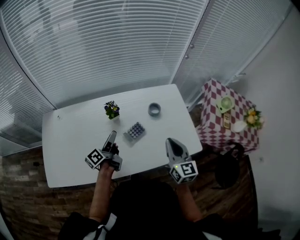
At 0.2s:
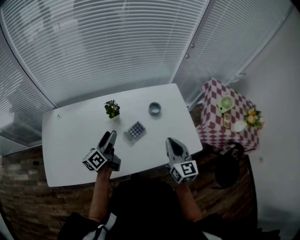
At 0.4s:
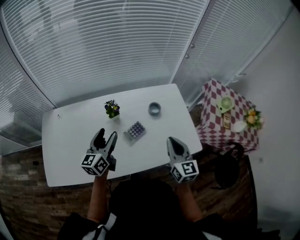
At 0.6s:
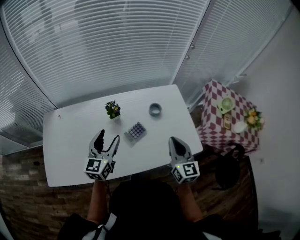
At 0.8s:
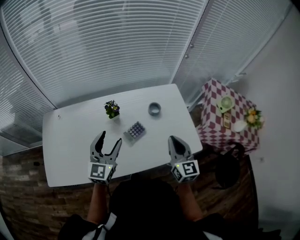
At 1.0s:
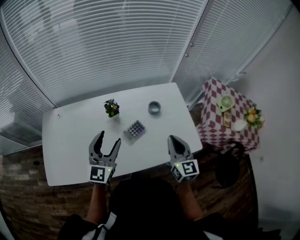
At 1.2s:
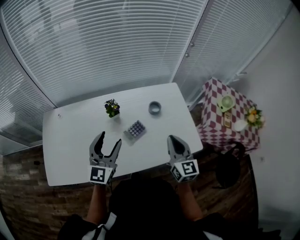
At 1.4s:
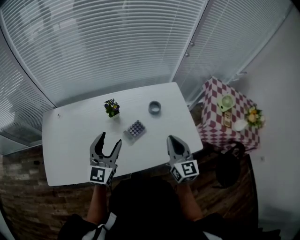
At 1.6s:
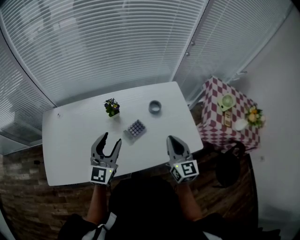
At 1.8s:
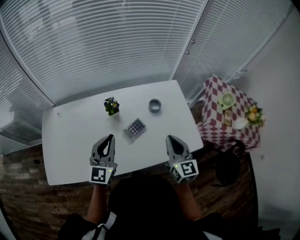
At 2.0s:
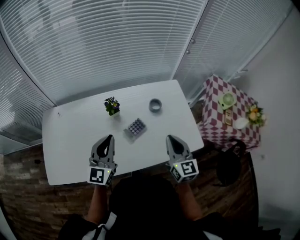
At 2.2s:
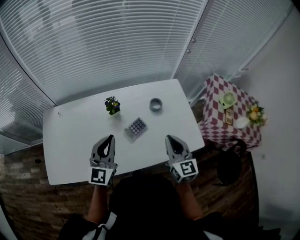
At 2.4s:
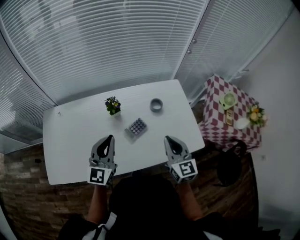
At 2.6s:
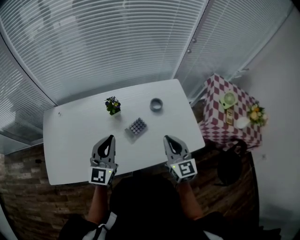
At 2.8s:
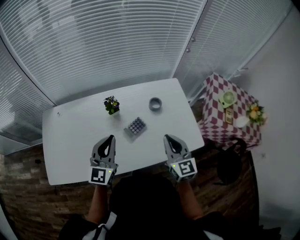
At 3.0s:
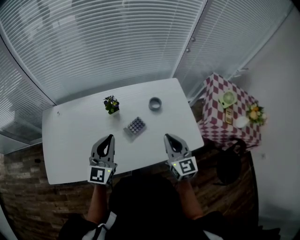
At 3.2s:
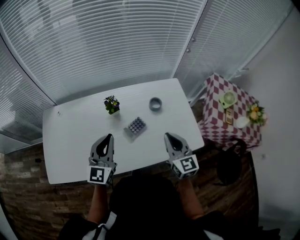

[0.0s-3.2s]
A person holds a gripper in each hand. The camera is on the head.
0.0s to 1.6s: The left gripper moves upward and backward, about 15 cm, and twists some 70 degrees clockwise, seen from behind.
1.6s to 3.2s: The left gripper closes its fingers.

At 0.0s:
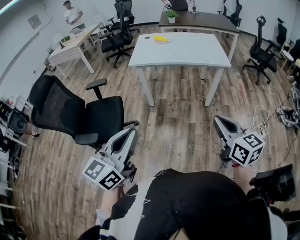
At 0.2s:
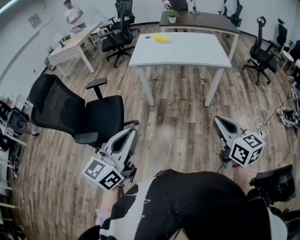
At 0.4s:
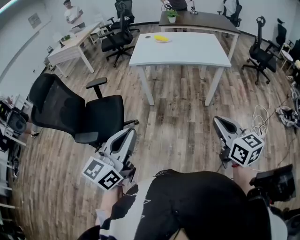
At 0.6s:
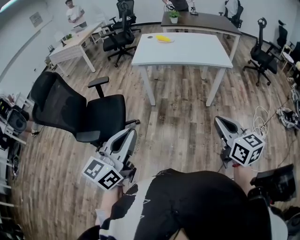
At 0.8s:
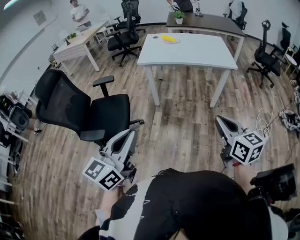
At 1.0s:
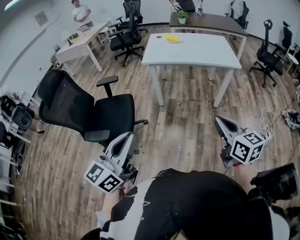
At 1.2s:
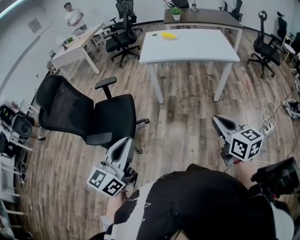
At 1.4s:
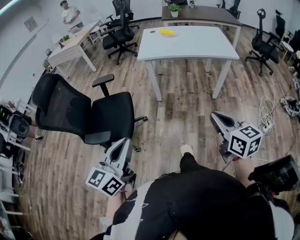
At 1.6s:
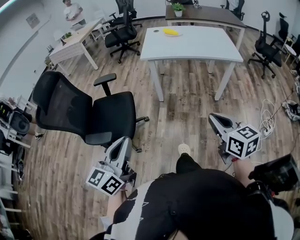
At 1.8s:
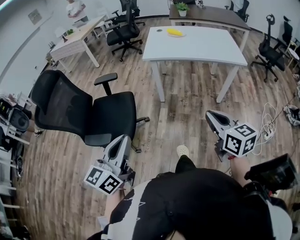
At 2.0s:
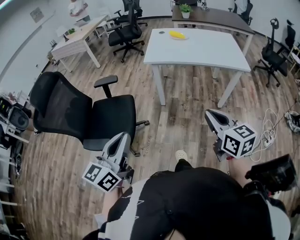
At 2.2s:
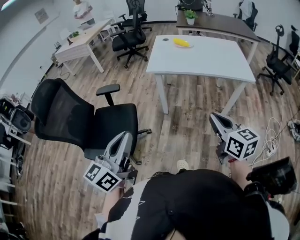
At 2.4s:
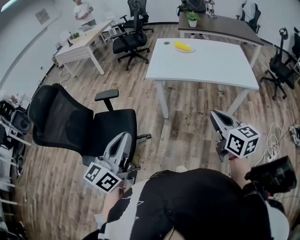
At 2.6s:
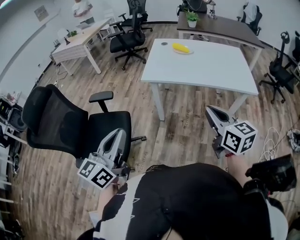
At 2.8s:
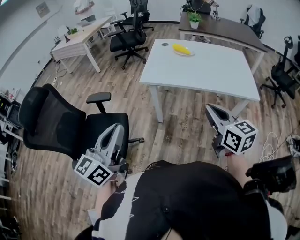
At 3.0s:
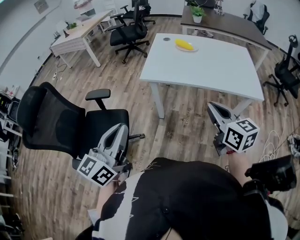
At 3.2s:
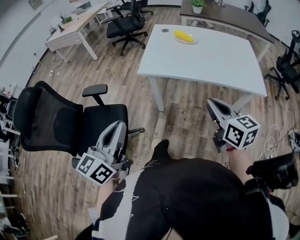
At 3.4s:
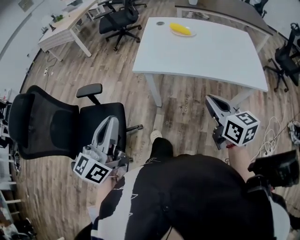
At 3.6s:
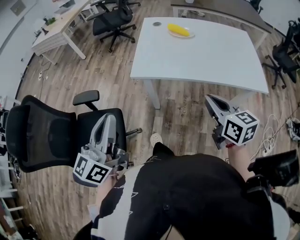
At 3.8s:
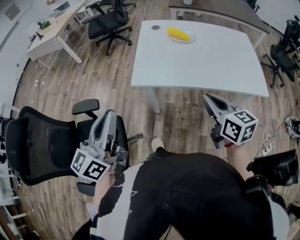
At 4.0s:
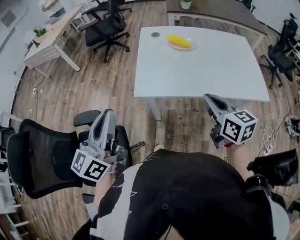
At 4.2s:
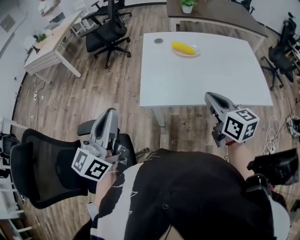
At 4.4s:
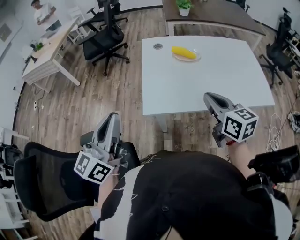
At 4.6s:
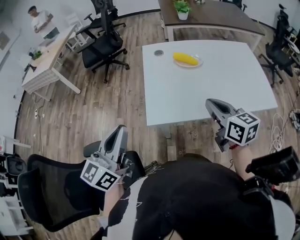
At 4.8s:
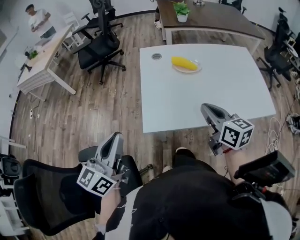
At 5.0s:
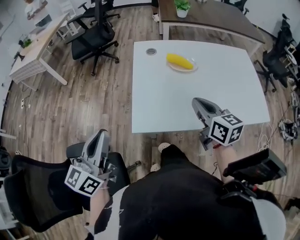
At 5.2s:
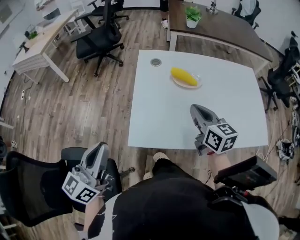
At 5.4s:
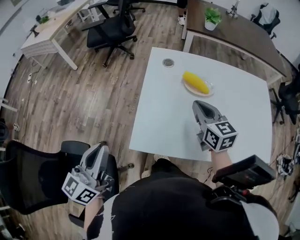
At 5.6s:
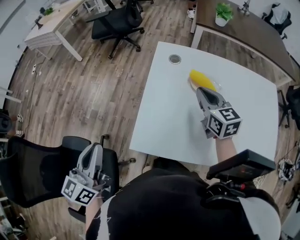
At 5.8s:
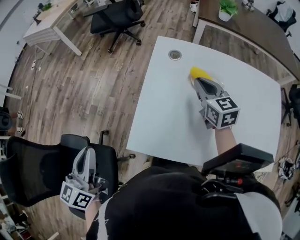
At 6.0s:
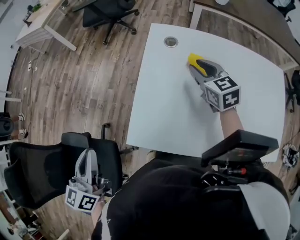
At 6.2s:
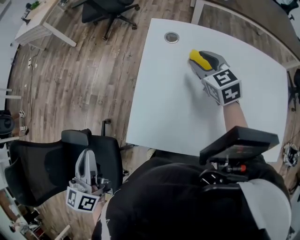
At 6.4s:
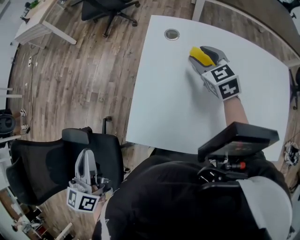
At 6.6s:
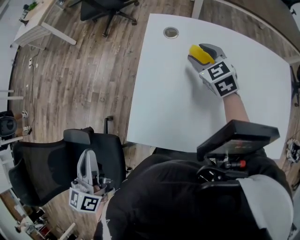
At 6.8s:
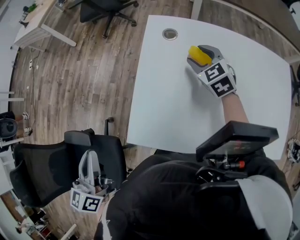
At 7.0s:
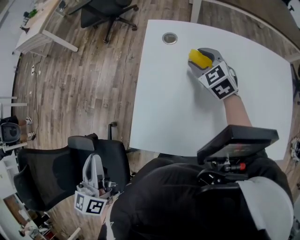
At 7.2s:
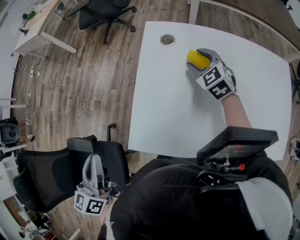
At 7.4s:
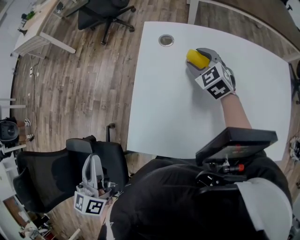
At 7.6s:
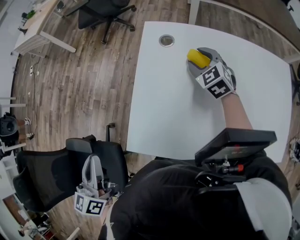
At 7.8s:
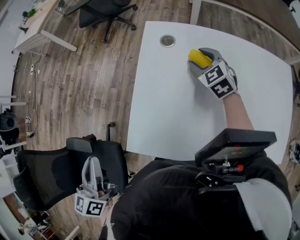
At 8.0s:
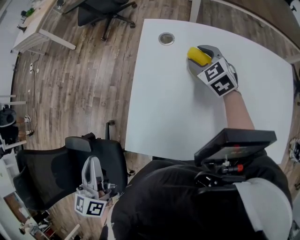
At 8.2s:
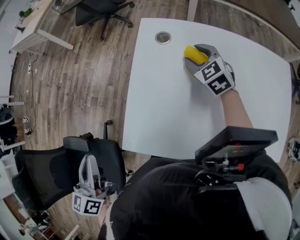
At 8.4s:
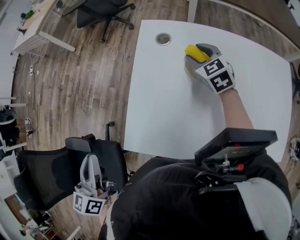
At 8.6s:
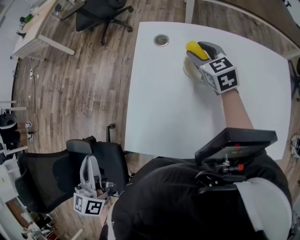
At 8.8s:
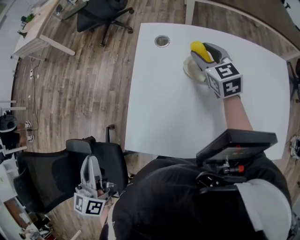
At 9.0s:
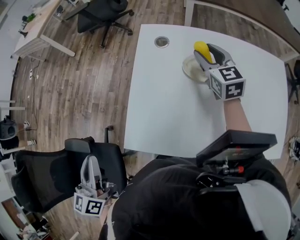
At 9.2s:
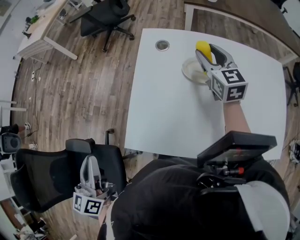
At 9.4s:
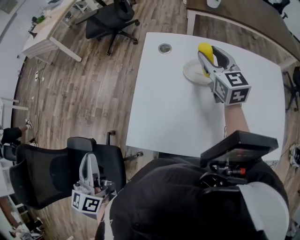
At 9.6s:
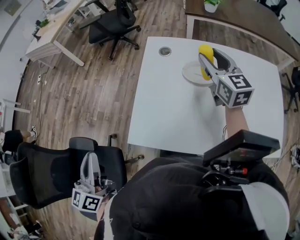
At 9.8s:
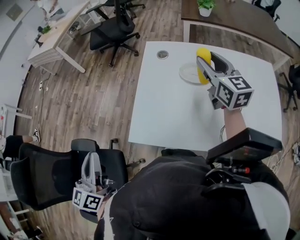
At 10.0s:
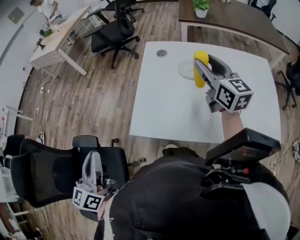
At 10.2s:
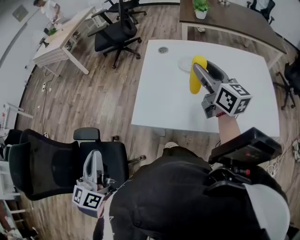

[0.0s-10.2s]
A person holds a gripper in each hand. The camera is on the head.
0.0s to 1.4s: The right gripper moves to the left, approximately 10 cm; the left gripper is displaced to the left and downward by some 15 cm.
1.4s to 3.0s: The grippers both shift forward by approximately 35 cm.
3.0s to 4.4s: Both grippers travel together forward, some 30 cm.
4.4s to 5.8s: The left gripper moves forward and downward, roughly 15 cm, and rotates about 30 degrees. Meanwhile the right gripper moves forward, approximately 35 cm, and changes its angle by about 20 degrees.
5.8s to 7.2s: The right gripper moves downward and forward, about 10 cm, turns by some 30 degrees, and opens.
7.2s to 8.8s: The right gripper is displaced upward by roughly 5 cm, and swivels approximately 20 degrees.
8.8s to 10.2s: The left gripper heads backward, covering some 20 cm. The right gripper goes about 30 cm backward and upward, and rotates approximately 40 degrees.

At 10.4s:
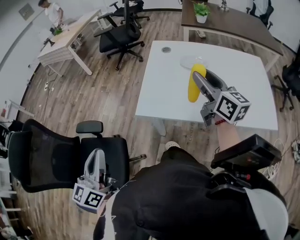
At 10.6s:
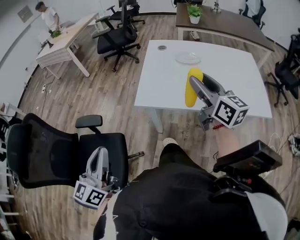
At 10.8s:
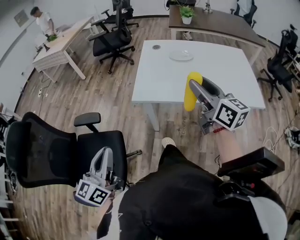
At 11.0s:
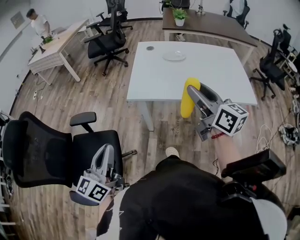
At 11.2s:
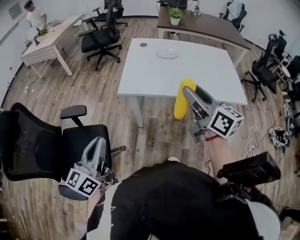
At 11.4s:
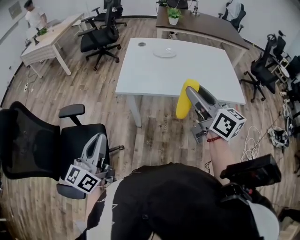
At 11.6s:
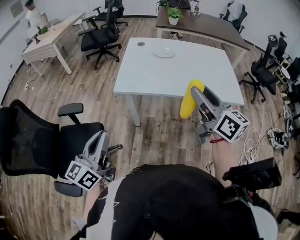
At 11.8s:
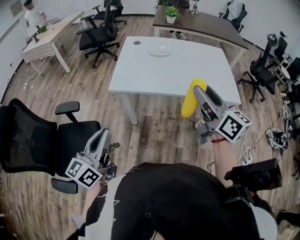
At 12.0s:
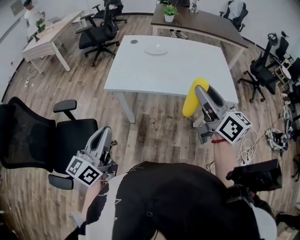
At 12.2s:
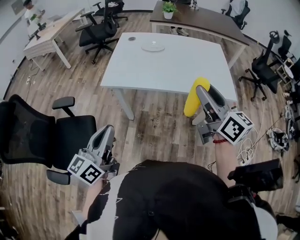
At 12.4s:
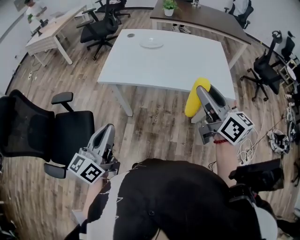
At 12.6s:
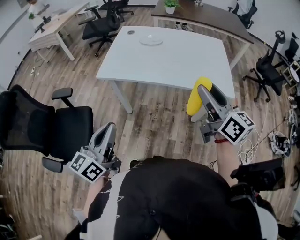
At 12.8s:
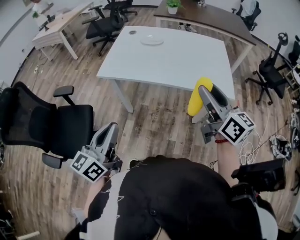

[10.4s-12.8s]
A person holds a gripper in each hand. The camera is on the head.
10.4s to 11.6s: The right gripper heads backward, covering some 30 cm, while the left gripper is displaced backward and to the right by approximately 15 cm.
11.6s to 12.8s: Both grippers travel together to the right, roughly 20 cm.

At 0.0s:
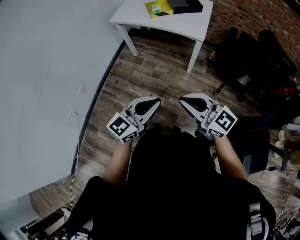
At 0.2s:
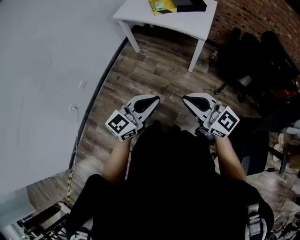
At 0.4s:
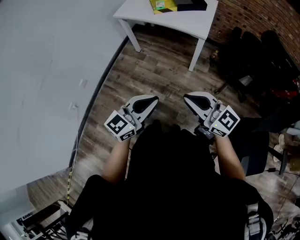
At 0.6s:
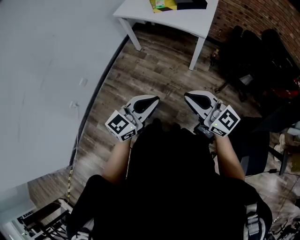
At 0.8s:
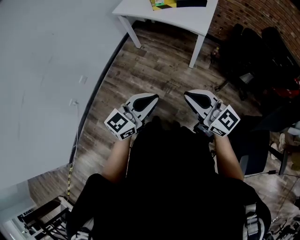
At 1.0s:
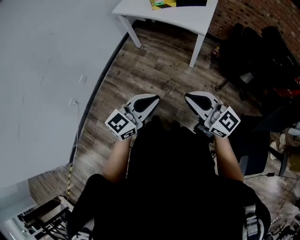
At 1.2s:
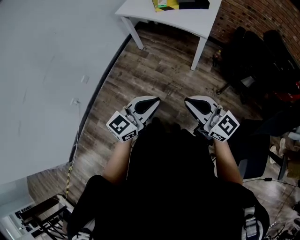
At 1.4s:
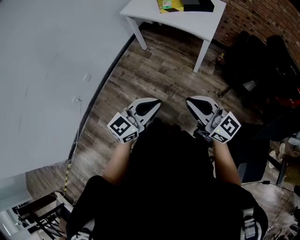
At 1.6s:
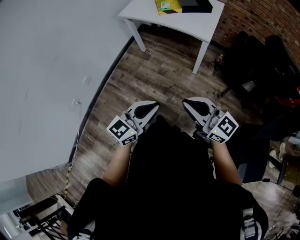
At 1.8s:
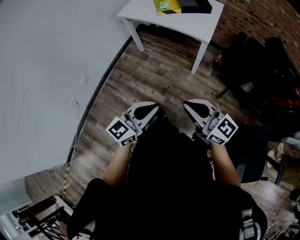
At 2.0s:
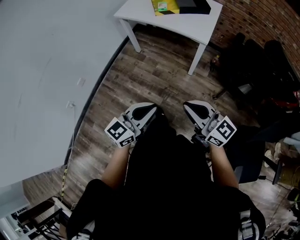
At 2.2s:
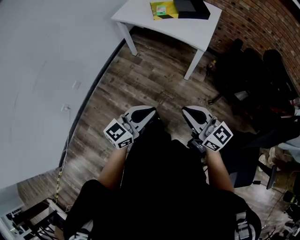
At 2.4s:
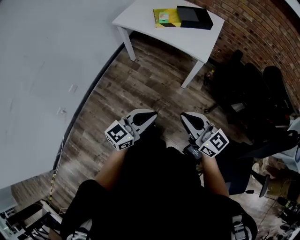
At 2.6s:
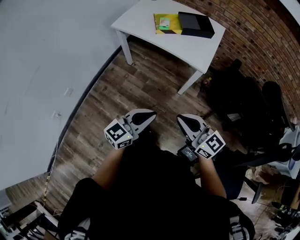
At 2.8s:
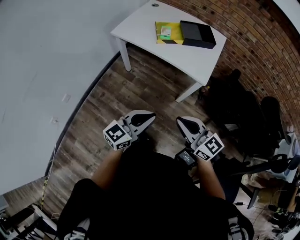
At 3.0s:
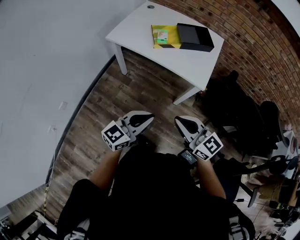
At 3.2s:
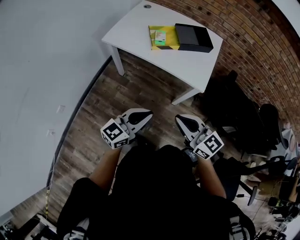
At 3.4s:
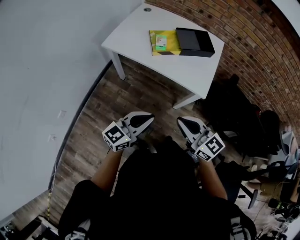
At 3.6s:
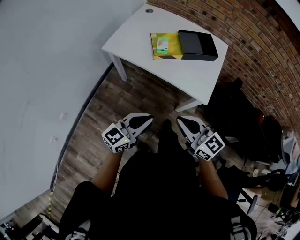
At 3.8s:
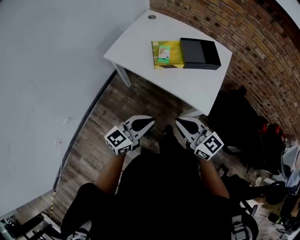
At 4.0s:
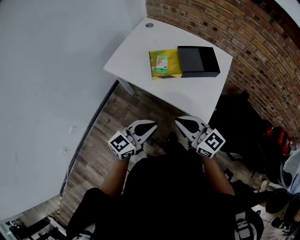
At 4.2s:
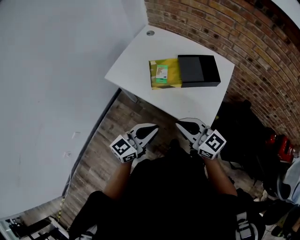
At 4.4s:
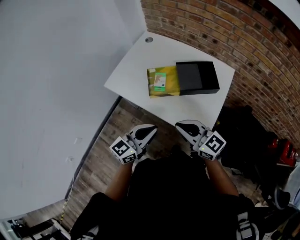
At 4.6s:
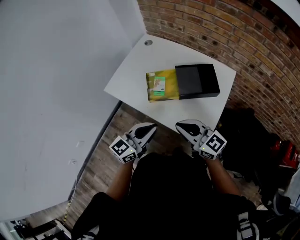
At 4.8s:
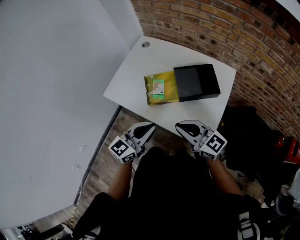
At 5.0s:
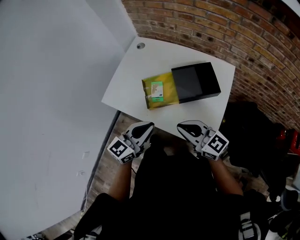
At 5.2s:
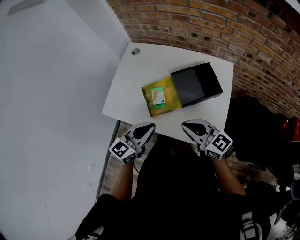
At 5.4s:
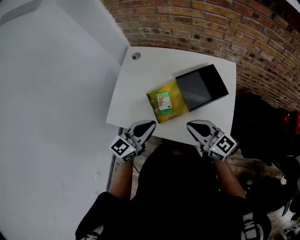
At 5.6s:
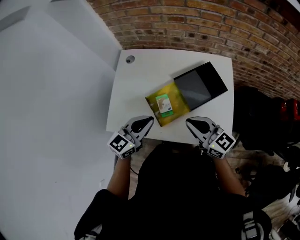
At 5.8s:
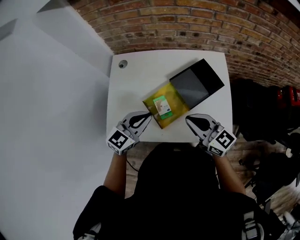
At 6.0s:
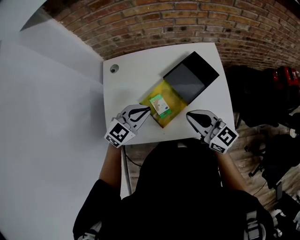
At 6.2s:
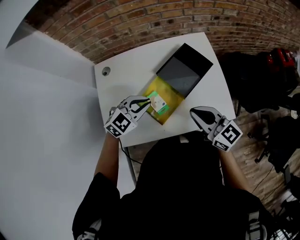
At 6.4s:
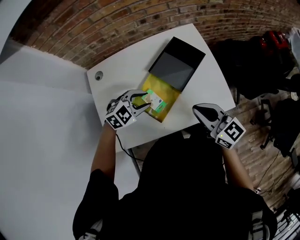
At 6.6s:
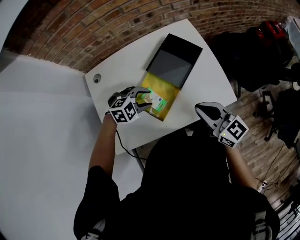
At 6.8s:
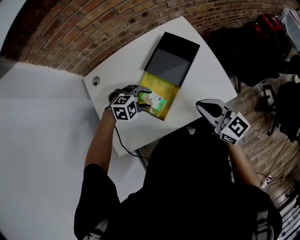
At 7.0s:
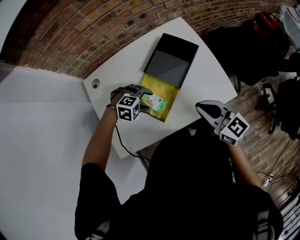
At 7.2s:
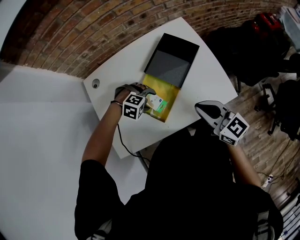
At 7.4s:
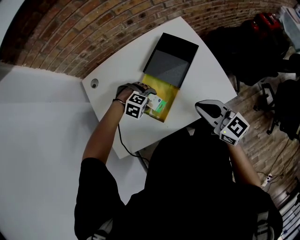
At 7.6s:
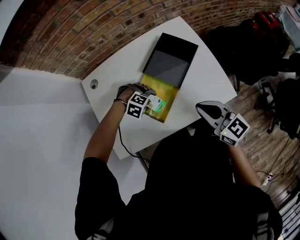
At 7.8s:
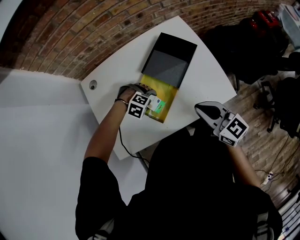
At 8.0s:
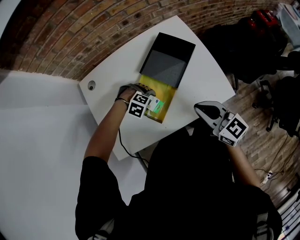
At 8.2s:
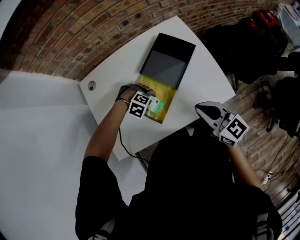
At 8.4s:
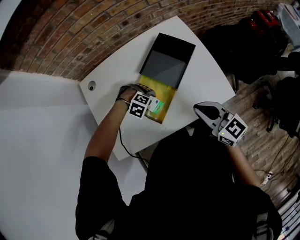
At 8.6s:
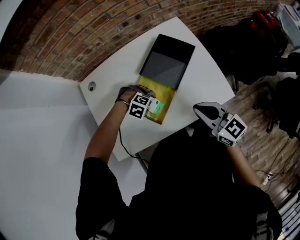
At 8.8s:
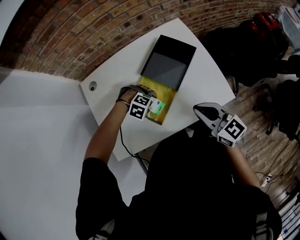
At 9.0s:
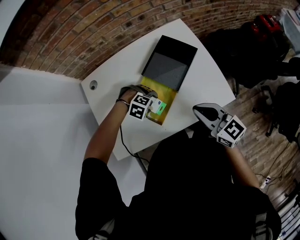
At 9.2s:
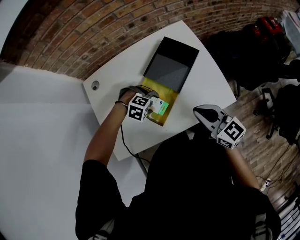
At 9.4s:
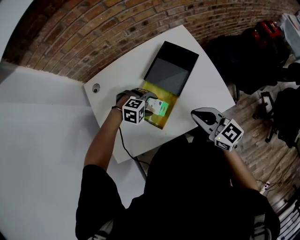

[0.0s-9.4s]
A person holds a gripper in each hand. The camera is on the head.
1.6s to 3.2s: Both grippers move forward, approximately 30 cm.
3.2s to 4.8s: The grippers both shift forward by roughly 30 cm.
4.8s to 6.2s: The right gripper shifts by some 15 cm, and swivels roughly 50 degrees. Meanwhile the left gripper moves roughly 25 cm, and changes its angle by some 70 degrees.
6.2s to 7.8s: The right gripper moves roughly 5 cm. Meanwhile the left gripper shifts roughly 20 cm downward, angles its fingers downward, by roughly 50 degrees, and opens up.
7.8s to 9.4s: The left gripper heads upward, covering approximately 5 cm.
